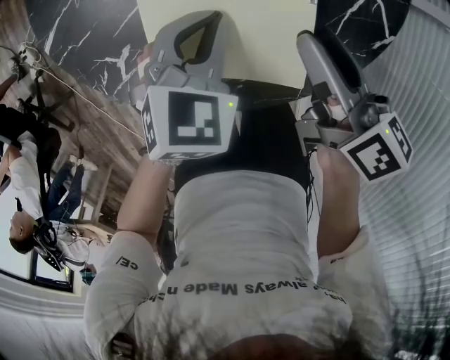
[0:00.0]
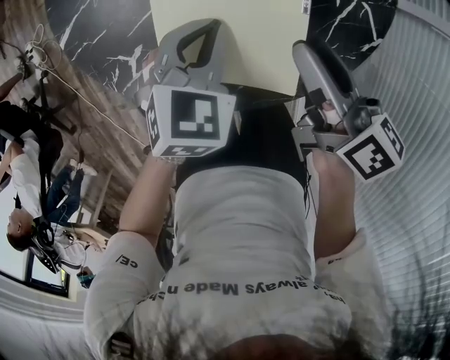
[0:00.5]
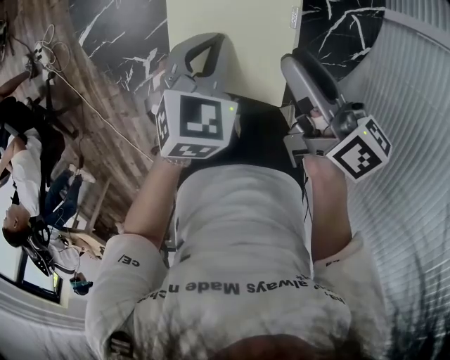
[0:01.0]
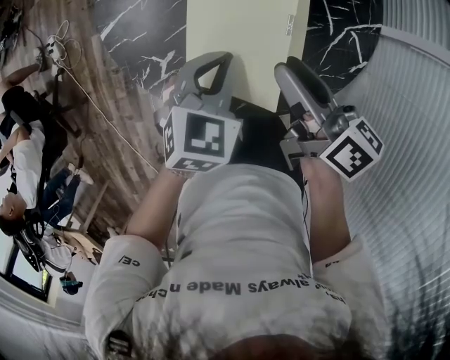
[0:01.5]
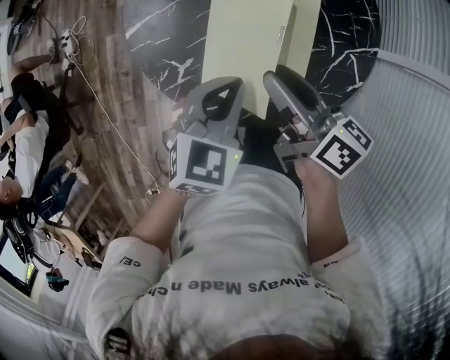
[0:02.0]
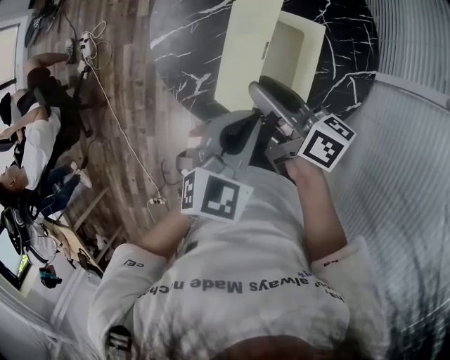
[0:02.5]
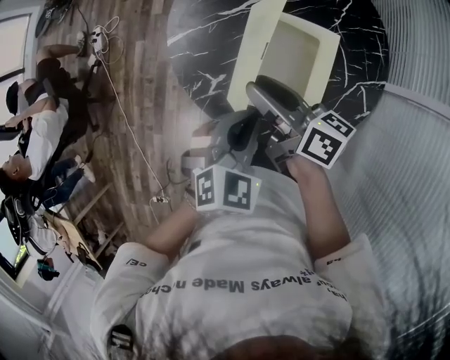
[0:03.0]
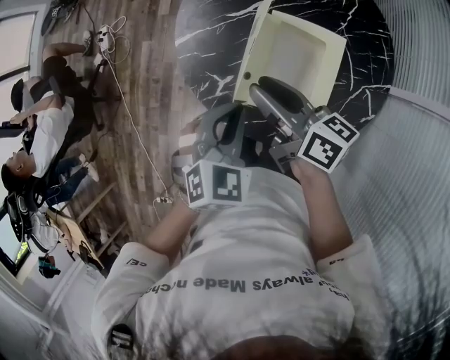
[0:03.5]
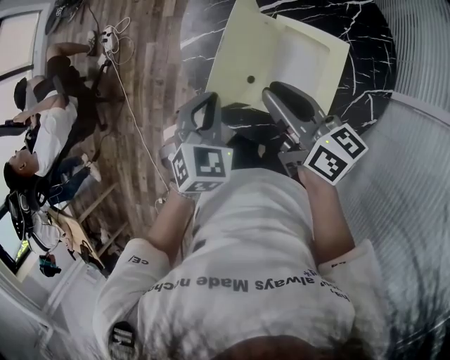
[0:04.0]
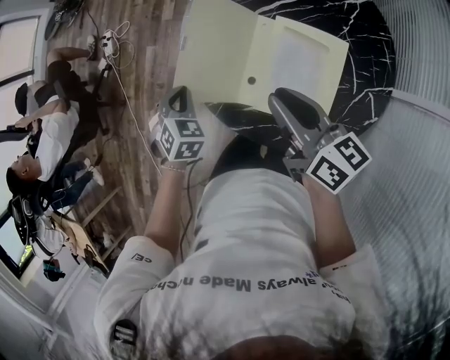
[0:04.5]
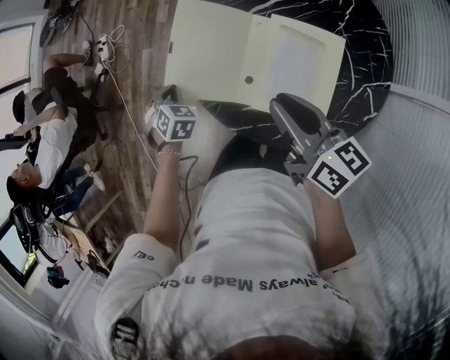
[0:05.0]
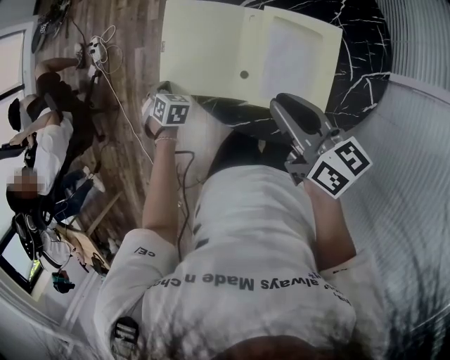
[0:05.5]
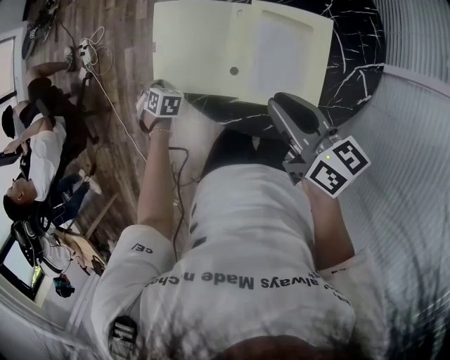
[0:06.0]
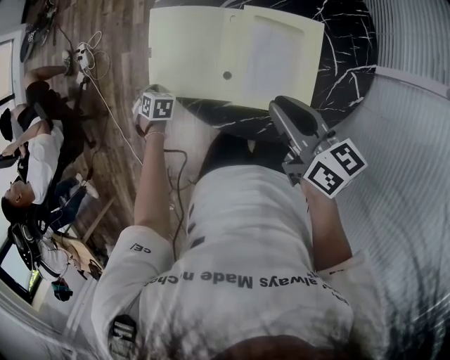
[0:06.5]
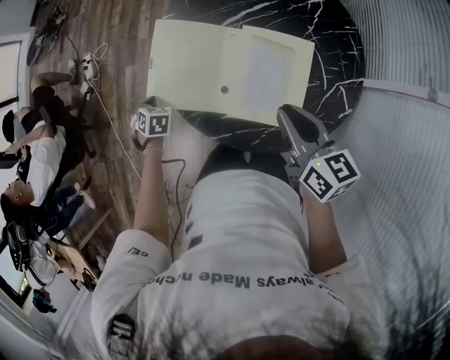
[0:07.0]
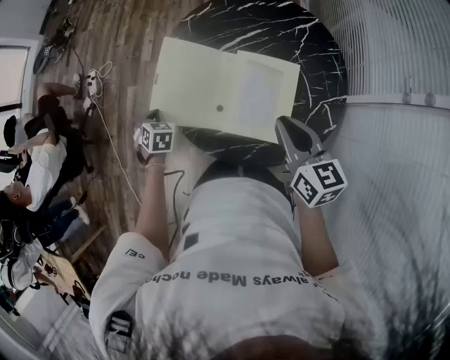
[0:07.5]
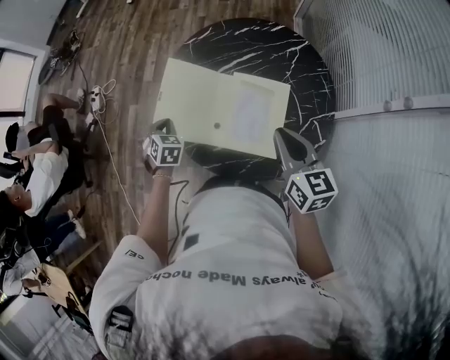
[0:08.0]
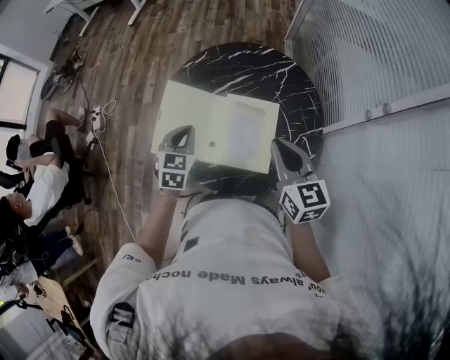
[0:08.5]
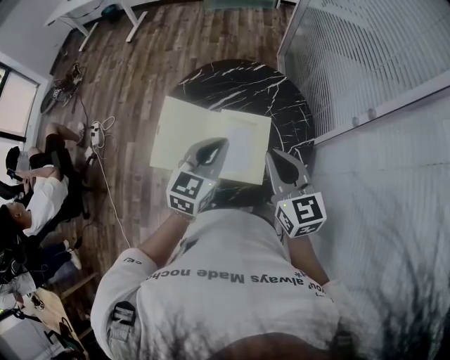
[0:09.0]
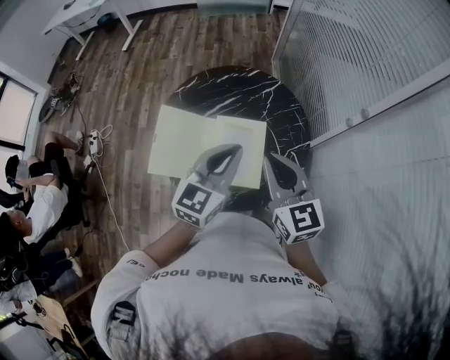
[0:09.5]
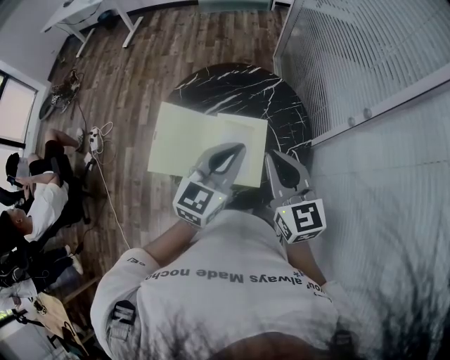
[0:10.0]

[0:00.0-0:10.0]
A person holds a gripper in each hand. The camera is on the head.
0:00.0 to 0:02.0: The left gripper is displaced upward by about 15 cm. The right gripper goes some 15 cm upward and to the left.
0:02.0 to 0:04.0: The left gripper moves to the left, roughly 15 cm, and rotates about 30 degrees; the right gripper goes roughly 10 cm to the left and upward.
0:04.0 to 0:06.0: The left gripper heads downward, to the left and forward, covering roughly 30 cm, and turns by about 30 degrees. The right gripper moves some 5 cm.
0:06.0 to 0:08.0: The left gripper goes roughly 20 cm upward and to the right, and swivels approximately 20 degrees. The right gripper goes approximately 15 cm upward, to the right and backward, and rotates some 30 degrees.
0:08.0 to 0:10.0: The left gripper is displaced upward by about 30 cm, and points its fingers roughly 40 degrees further upward. The right gripper shifts about 15 cm upward.

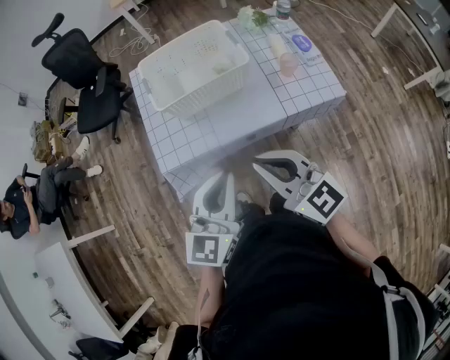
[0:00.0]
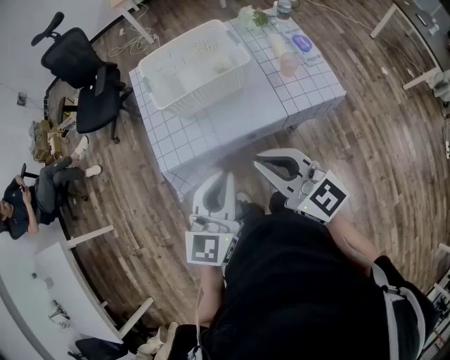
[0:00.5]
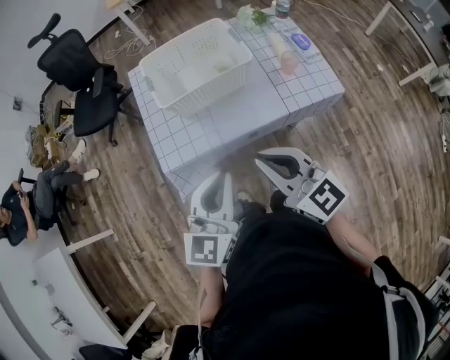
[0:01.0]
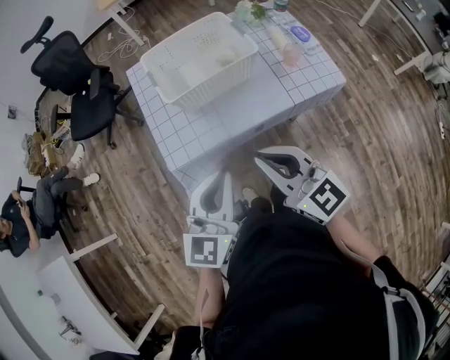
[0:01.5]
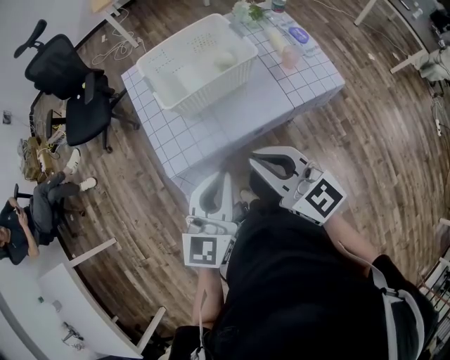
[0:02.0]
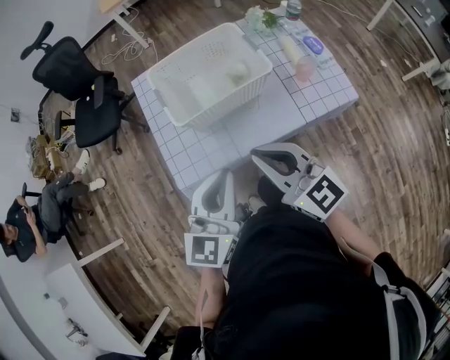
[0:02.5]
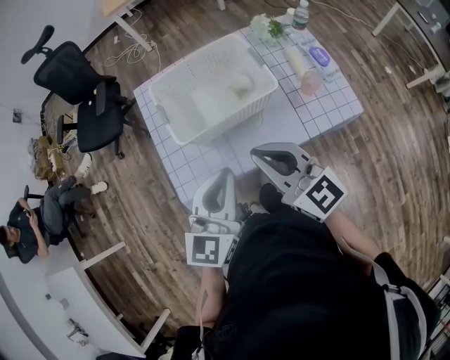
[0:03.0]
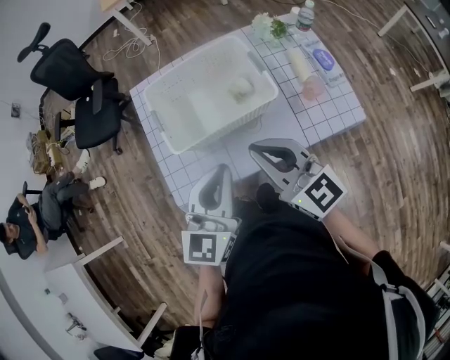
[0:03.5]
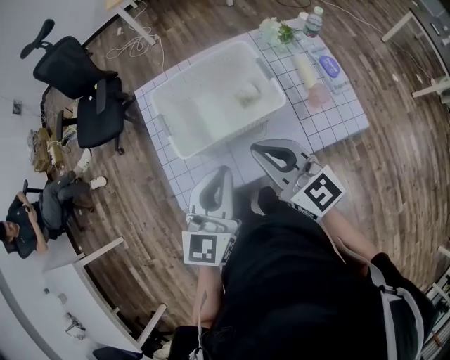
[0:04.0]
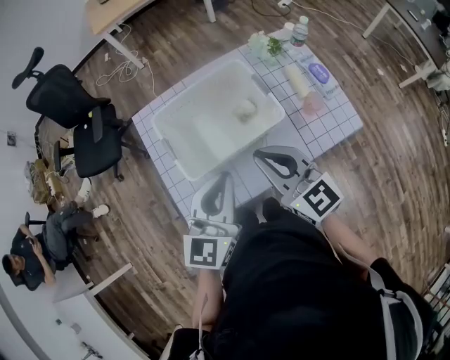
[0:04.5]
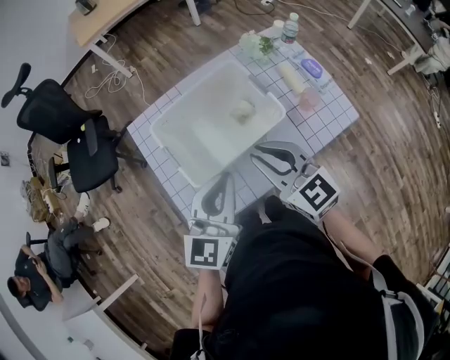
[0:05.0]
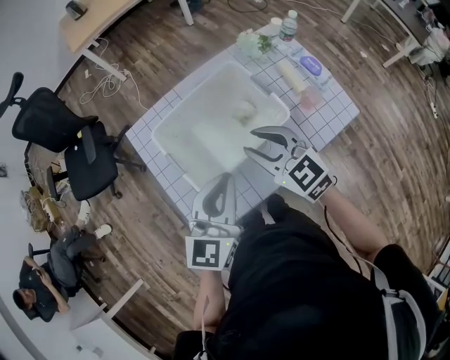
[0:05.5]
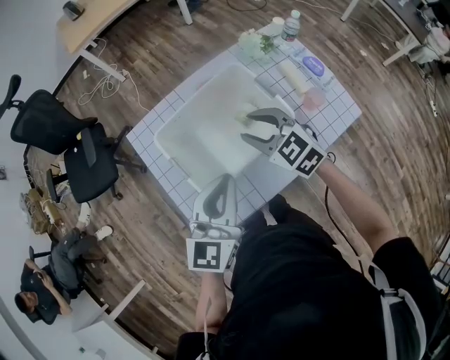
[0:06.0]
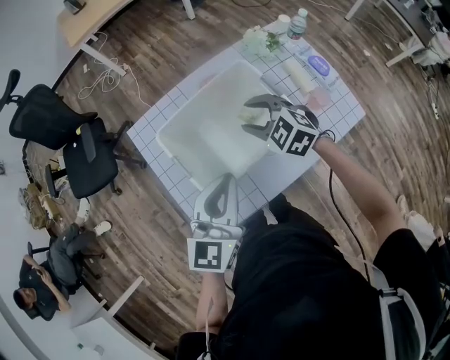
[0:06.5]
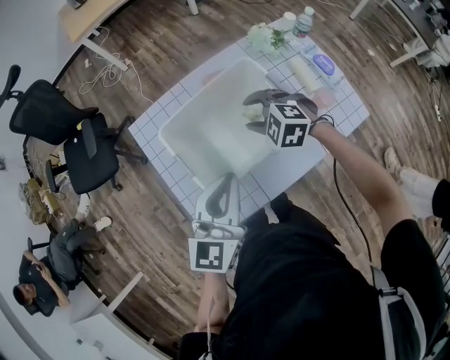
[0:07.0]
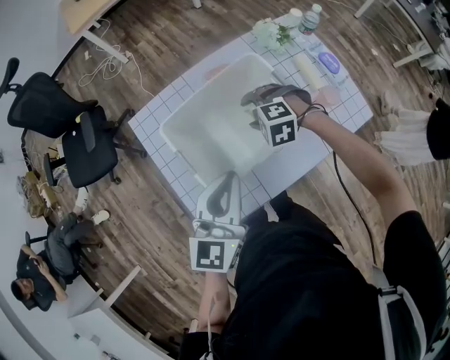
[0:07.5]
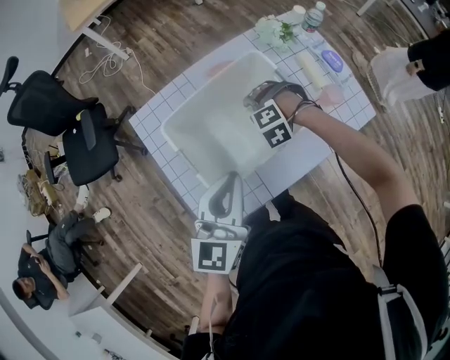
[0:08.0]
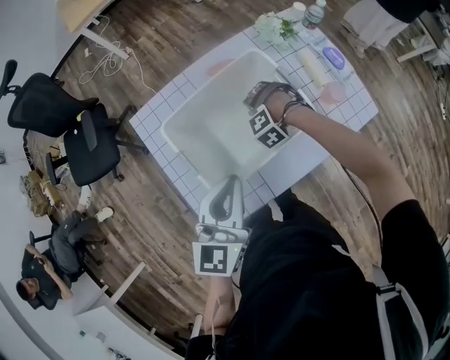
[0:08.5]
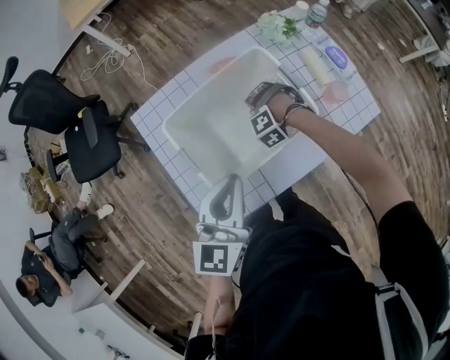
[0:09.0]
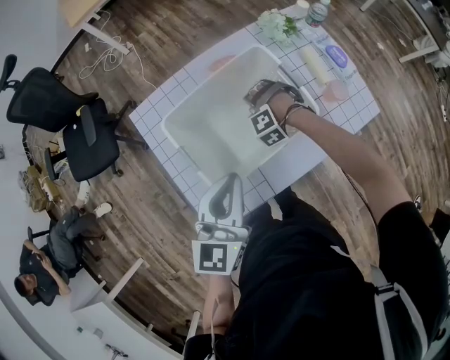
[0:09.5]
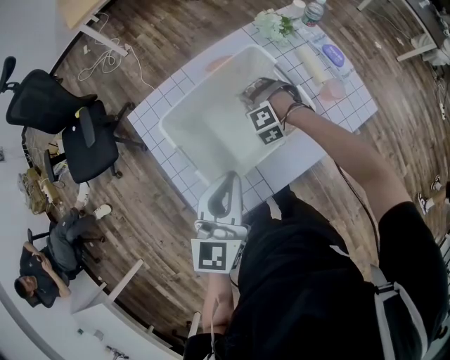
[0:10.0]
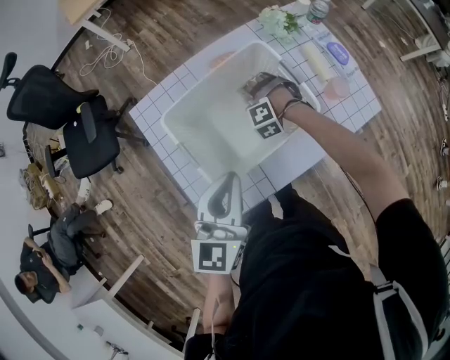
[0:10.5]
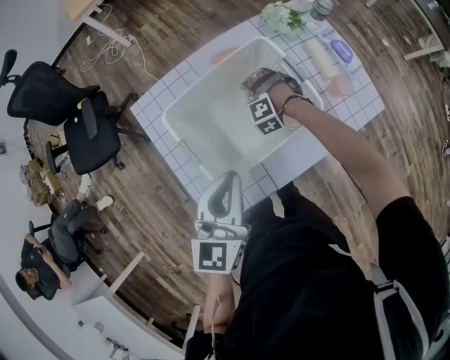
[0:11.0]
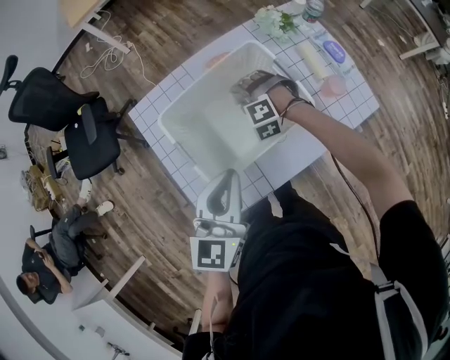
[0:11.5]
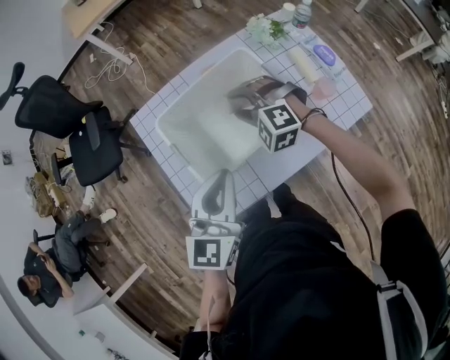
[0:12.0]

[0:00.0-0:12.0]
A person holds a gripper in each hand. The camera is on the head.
0:00.0 to 0:02.0: The two grippers go roughly 10 cm to the left.
0:02.0 to 0:04.0: The grippers both shift forward by some 20 cm.
0:04.0 to 0:06.0: The left gripper heads forward, covering roughly 10 cm. The right gripper is displaced forward and downward by about 15 cm, turns by approximately 30 degrees, and opens.
0:06.0 to 0:08.0: The right gripper goes approximately 15 cm downward, and points its fingers approximately 40 degrees further downward.
0:08.0 to 0:10.0: The right gripper closes its fingers.
0:10.0 to 0:12.0: The right gripper is displaced upward by some 15 cm, swivels about 30 degrees, and opens.

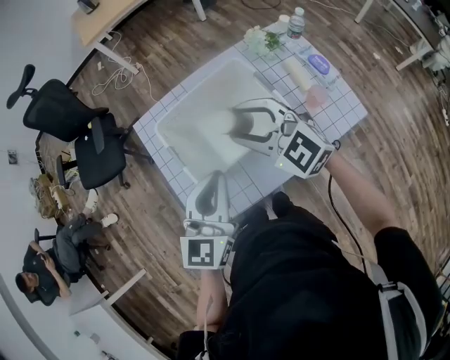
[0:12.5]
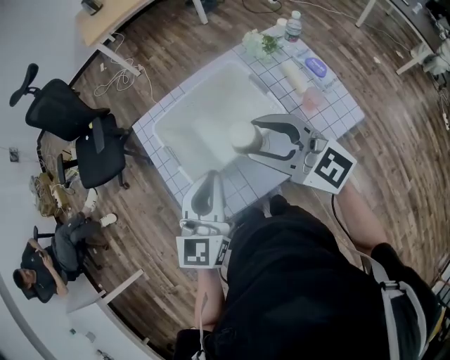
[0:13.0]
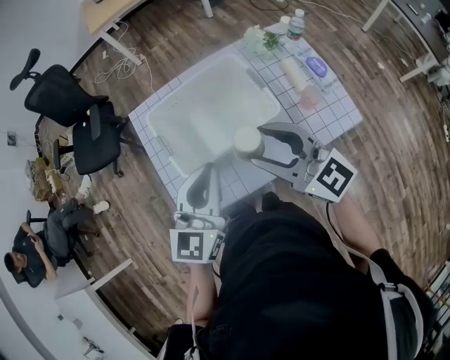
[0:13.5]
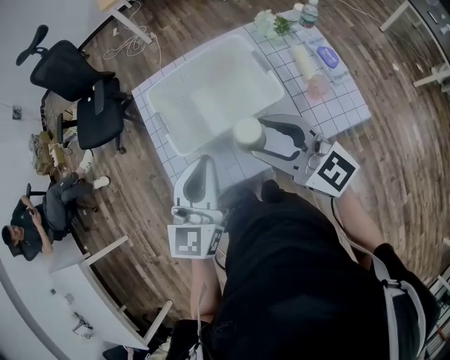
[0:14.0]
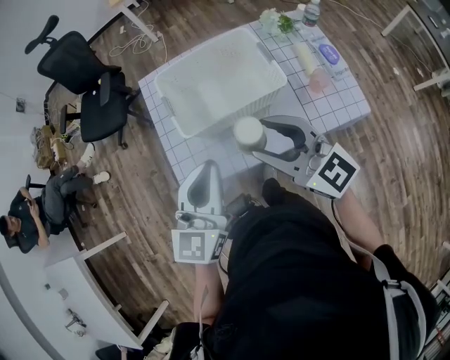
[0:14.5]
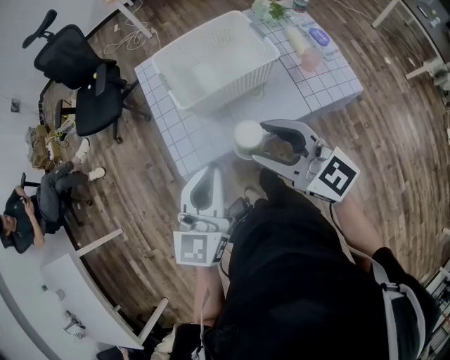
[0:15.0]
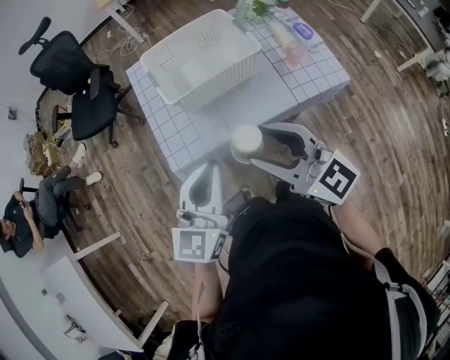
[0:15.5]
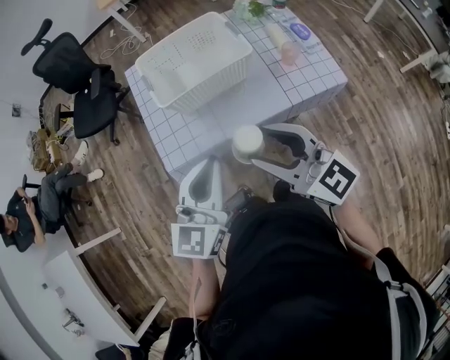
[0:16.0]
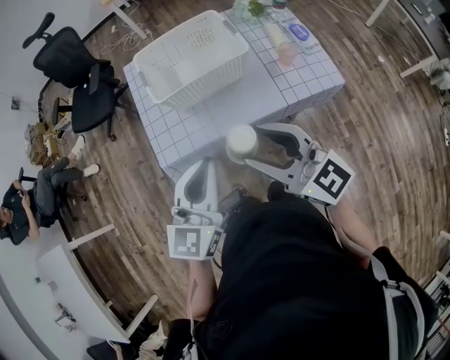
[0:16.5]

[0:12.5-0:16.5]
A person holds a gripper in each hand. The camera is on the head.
0:12.5 to 0:14.5: The right gripper shifts some 15 cm backward, and swivels roughly 30 degrees, while the left gripper shifts about 10 cm backward.
0:14.5 to 0:16.5: The two grippers go some 15 cm backward.

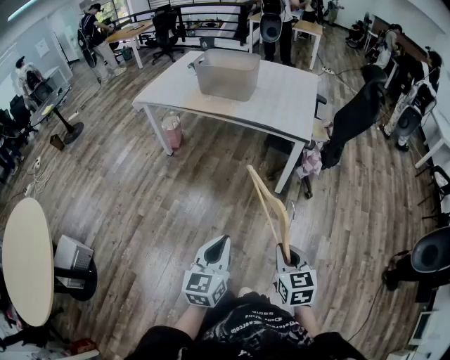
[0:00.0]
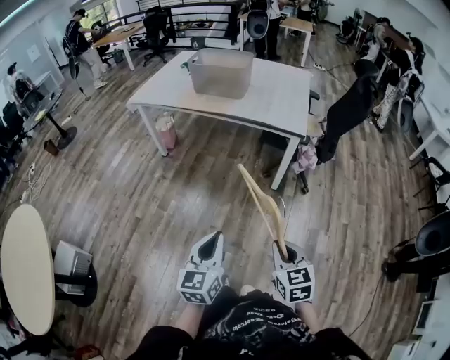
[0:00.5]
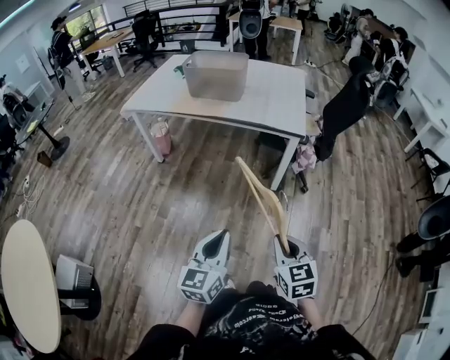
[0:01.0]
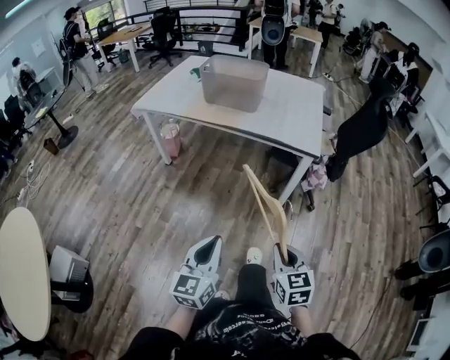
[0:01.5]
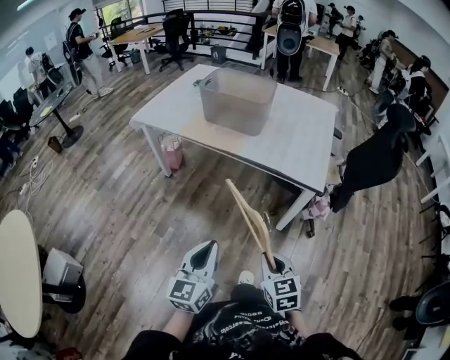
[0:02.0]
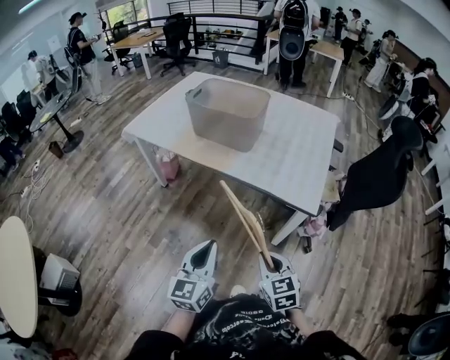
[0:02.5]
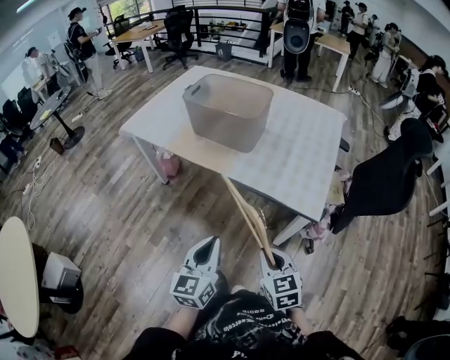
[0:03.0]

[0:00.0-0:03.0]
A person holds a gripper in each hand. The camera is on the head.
0:00.0 to 0:01.5: The right gripper moves forward and to the left, about 15 cm, while the left gripper shifts roughly 15 cm to the left and forward.
0:01.5 to 0:03.0: The pair of grippers is taken forward and to the right, some 40 cm.
